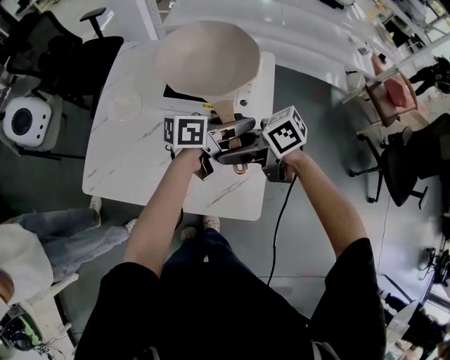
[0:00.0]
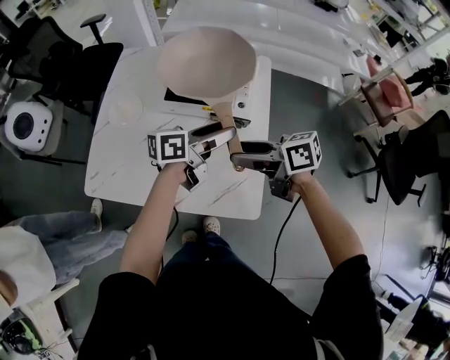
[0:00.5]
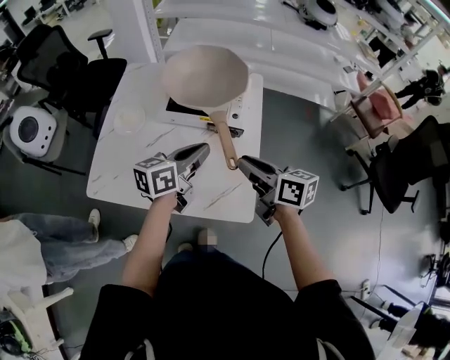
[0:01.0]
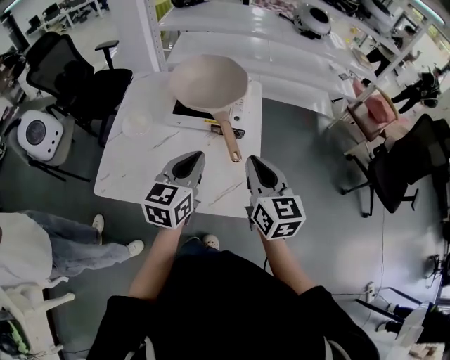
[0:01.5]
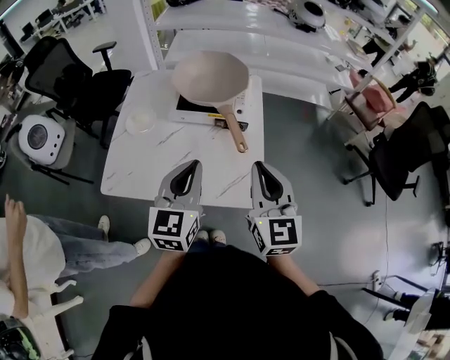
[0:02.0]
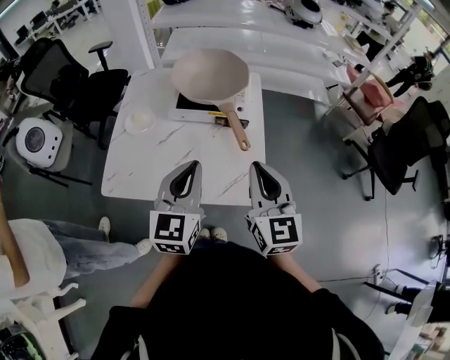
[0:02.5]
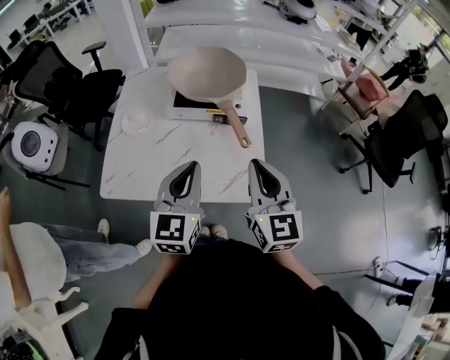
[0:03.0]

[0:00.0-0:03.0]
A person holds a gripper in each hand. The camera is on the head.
0:00.0 to 0:01.5: The right gripper ends up some 15 cm from where it was, changes its angle by approximately 80 degrees, and closes its fingers. Meanwhile the left gripper shifts by approximately 20 cm, changes its angle by approximately 50 degrees, and closes up.
0:01.5 to 0:03.0: The two grippers go some 5 cm backward.

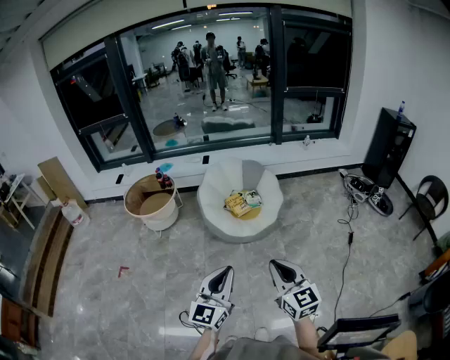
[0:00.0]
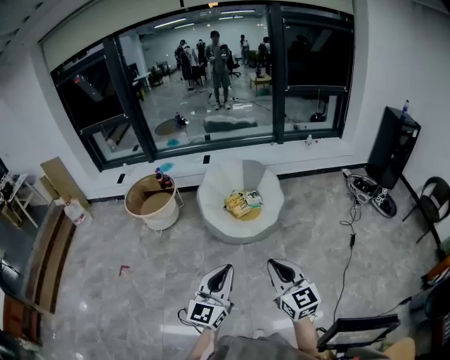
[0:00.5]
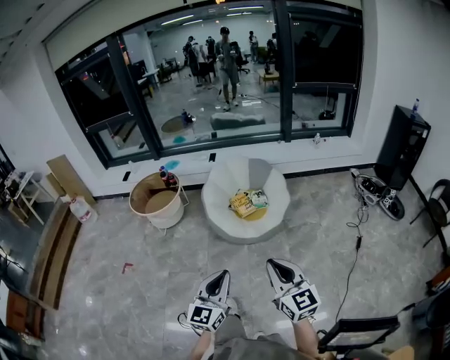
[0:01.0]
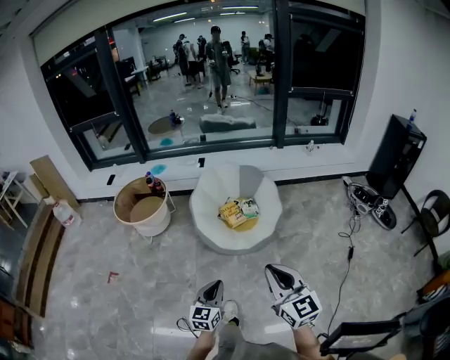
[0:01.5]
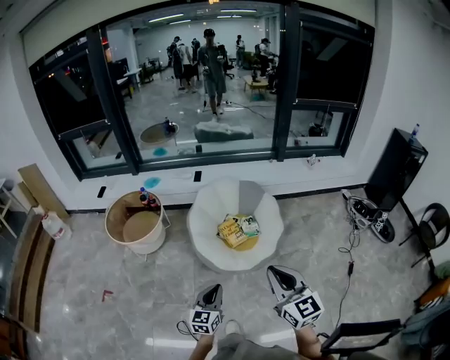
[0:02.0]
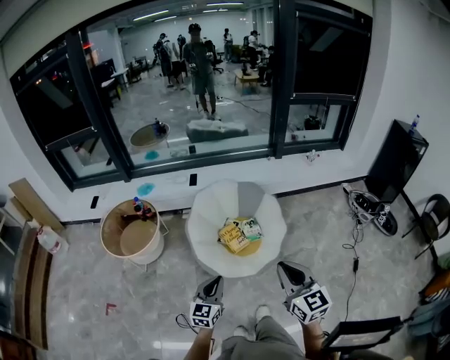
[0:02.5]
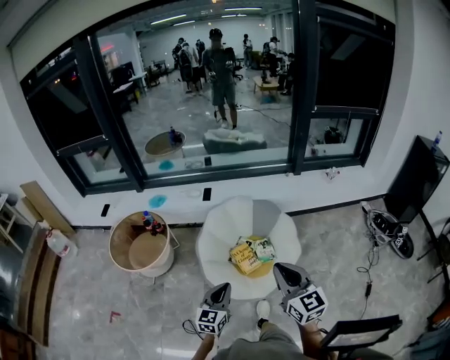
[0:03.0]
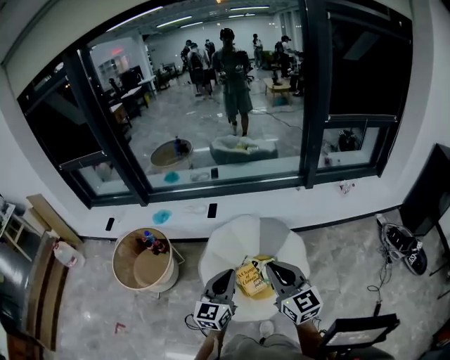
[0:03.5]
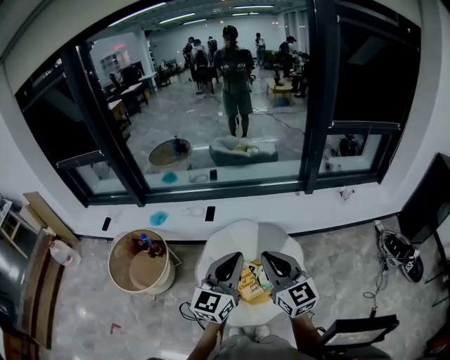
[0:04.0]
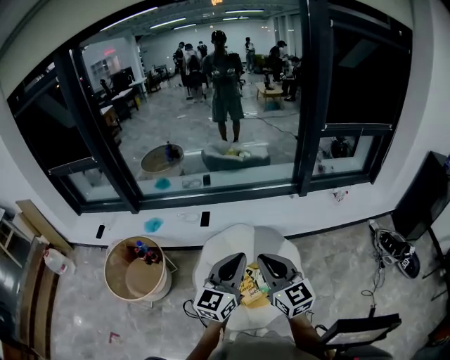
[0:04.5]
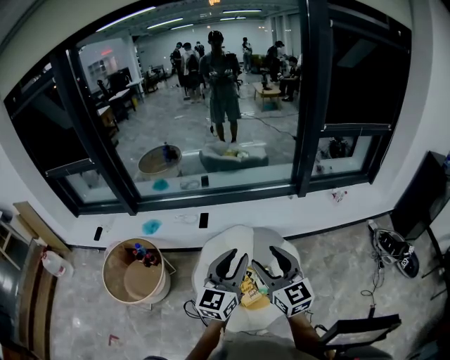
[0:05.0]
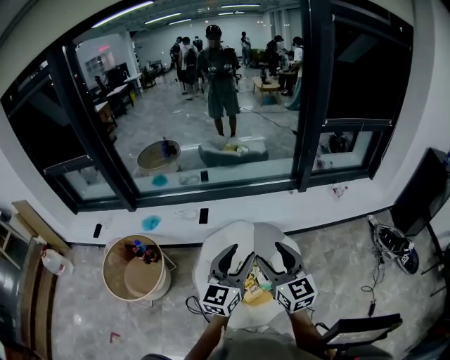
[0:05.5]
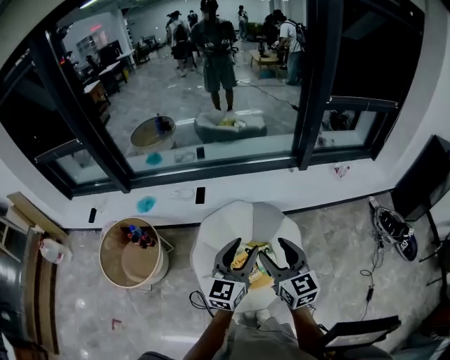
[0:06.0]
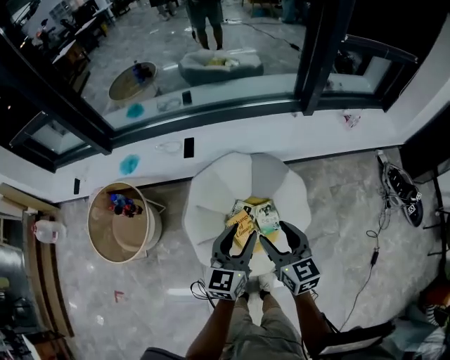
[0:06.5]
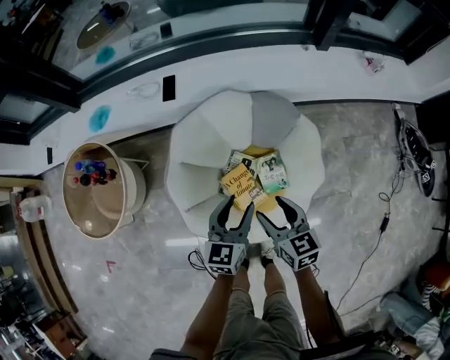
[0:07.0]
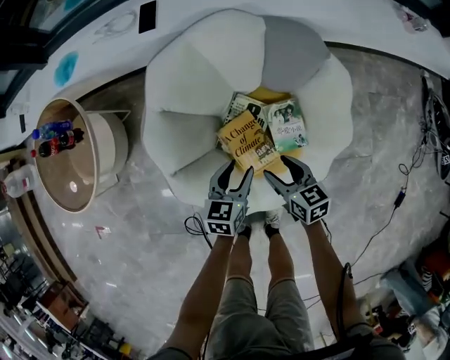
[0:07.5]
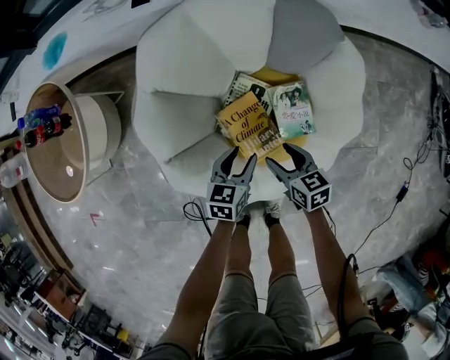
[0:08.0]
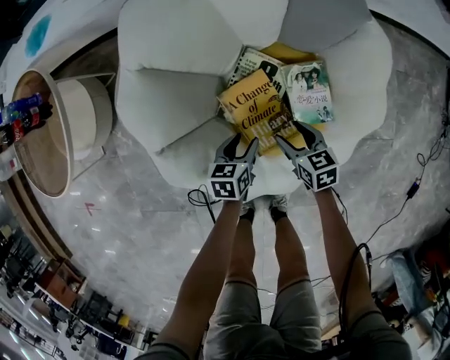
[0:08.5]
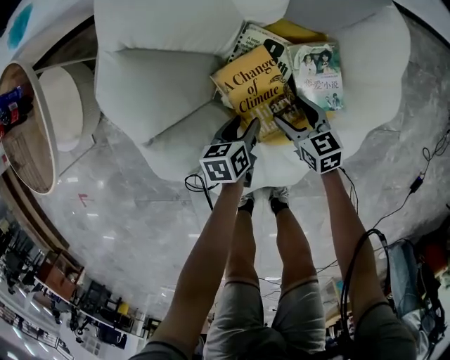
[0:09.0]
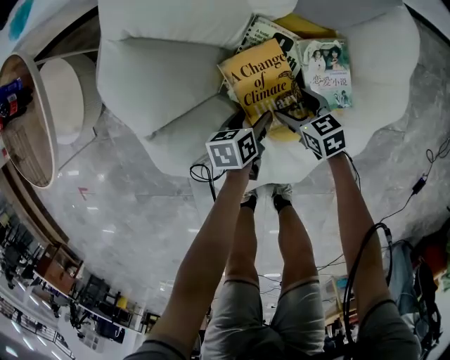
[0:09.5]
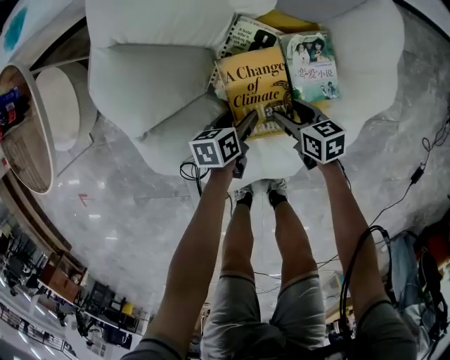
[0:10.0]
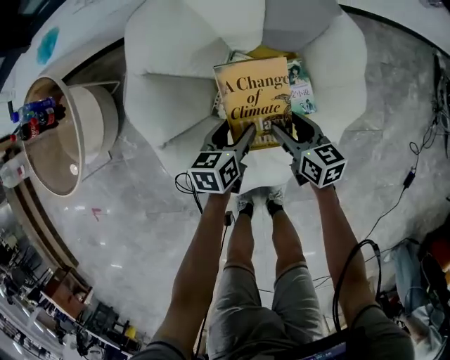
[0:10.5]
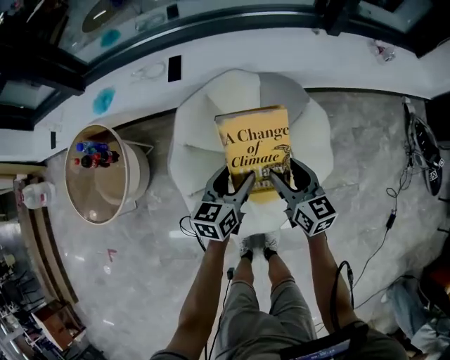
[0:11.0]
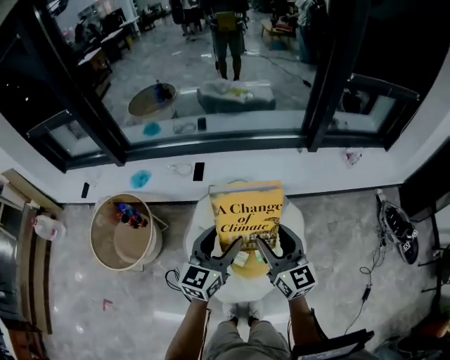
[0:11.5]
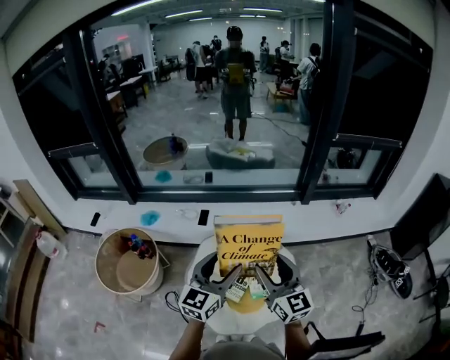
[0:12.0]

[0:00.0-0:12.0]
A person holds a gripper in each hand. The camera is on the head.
0:00.0 to 0:02.0: The right gripper goes approximately 30 cm forward. Meanwhile the left gripper heads forward and downward, covering roughly 35 cm, and changes its angle by approximately 20 degrees.
0:02.0 to 0:04.0: The two grippers travel together, forward, roughly 50 cm. The left gripper shifts roughly 25 cm upward.
0:04.0 to 0:06.0: The right gripper moves downward, some 10 cm, and opens its fingers. The left gripper shifts some 10 cm downward and forward, and opens.
0:06.0 to 0:08.0: Both grippers move downward, roughly 70 cm. The right gripper angles its fingers downward, by about 30 degrees; the left gripper tilts its fingers about 40 degrees downward.
0:08.0 to 0:10.0: Both grippers travel together downward, some 15 cm. The left gripper turns by approximately 30 degrees.
0:10.0 to 0:12.0: The two grippers go roughly 90 cm upward. The left gripper tilts its fingers some 50 degrees upward. Meanwhile the right gripper points its fingers approximately 50 degrees further upward.

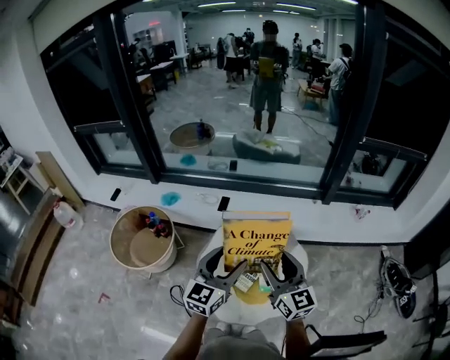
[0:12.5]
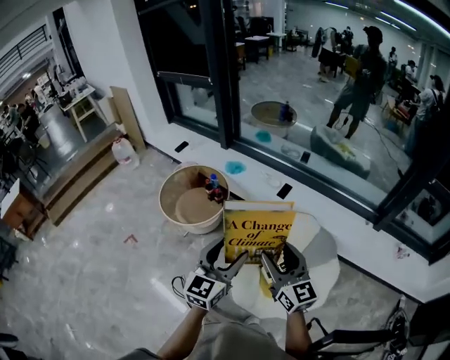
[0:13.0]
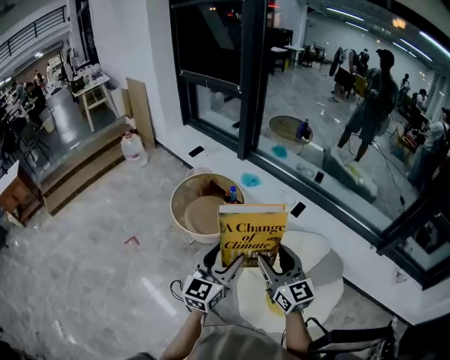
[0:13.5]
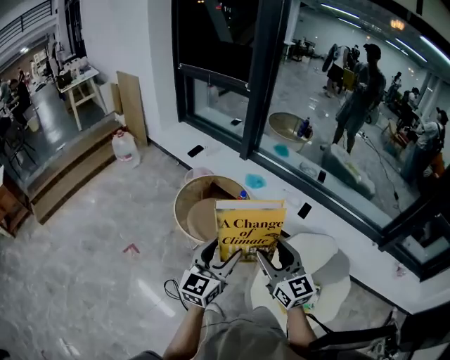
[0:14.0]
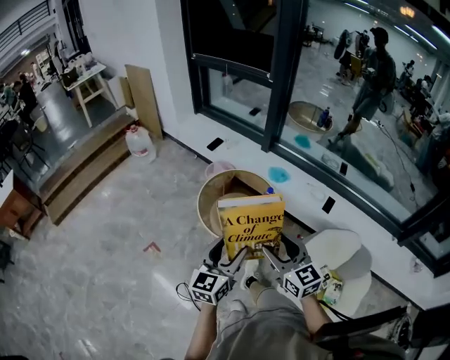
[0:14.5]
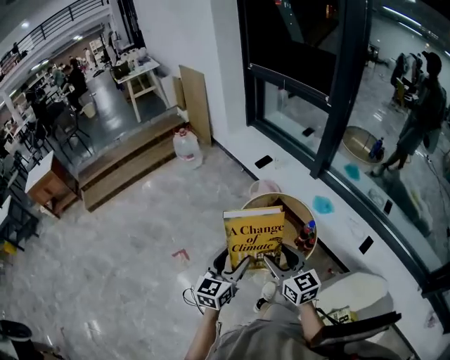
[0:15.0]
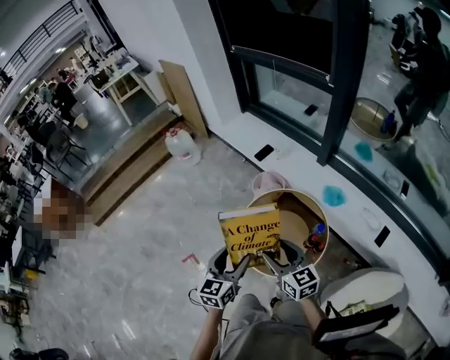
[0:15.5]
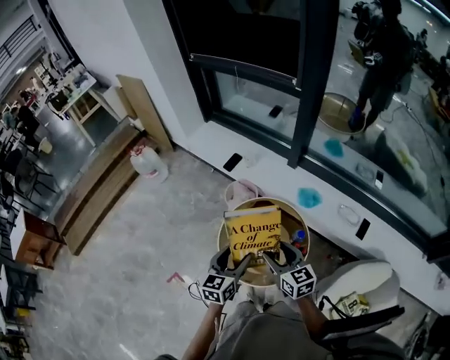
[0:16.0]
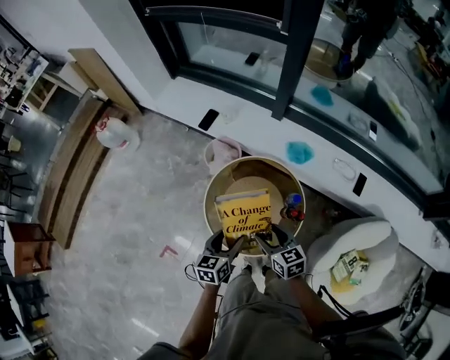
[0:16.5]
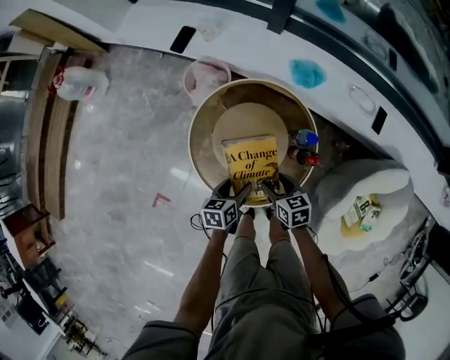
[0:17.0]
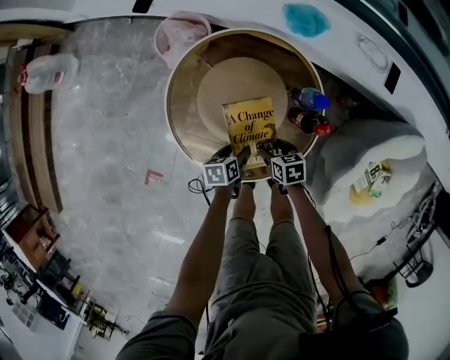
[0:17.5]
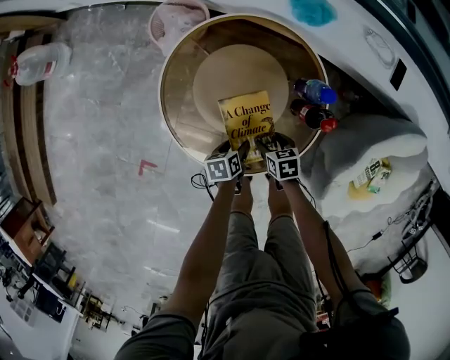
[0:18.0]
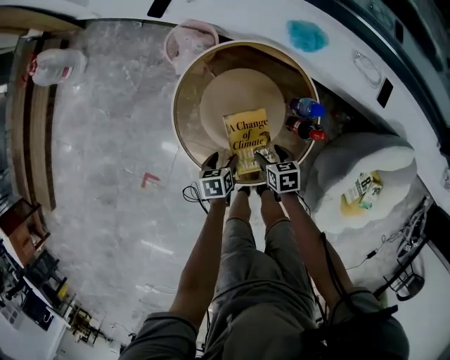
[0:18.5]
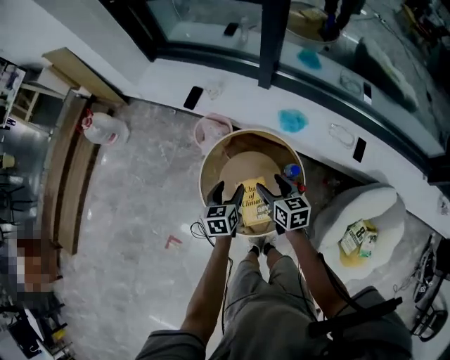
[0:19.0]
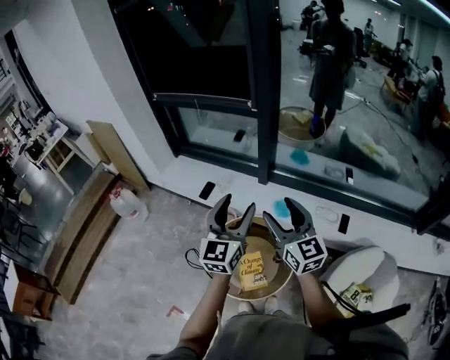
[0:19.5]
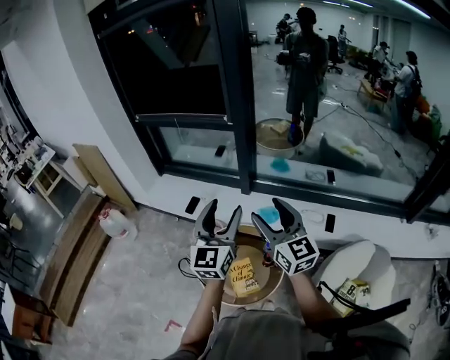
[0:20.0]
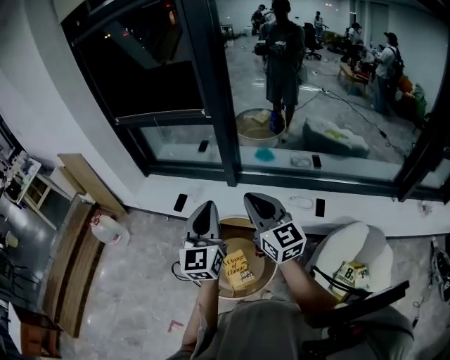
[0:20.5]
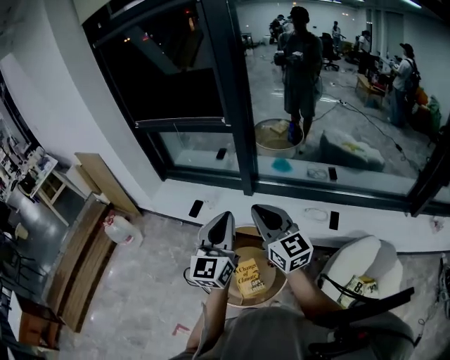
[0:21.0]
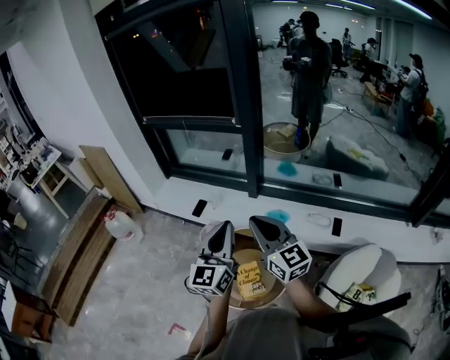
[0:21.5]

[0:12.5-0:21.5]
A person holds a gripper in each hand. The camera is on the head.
0:12.5 to 0:14.5: Both grippers are carried approximately 60 cm. The left gripper swivels roughly 40 degrees. The right gripper turns by some 40 degrees.
0:14.5 to 0:17.0: Both grippers travel together downward, roughly 50 cm. The right gripper angles its fingers downward, by roughly 40 degrees, while the left gripper tilts its fingers roughly 40 degrees downward.
0:17.0 to 0:19.5: The grippers both shift upward by some 60 cm. The left gripper tips its fingers upward by approximately 50 degrees, while the right gripper tips its fingers upward by some 50 degrees.
0:19.5 to 0:21.5: Both grippers move backward, some 5 cm. The right gripper closes its fingers. The left gripper closes up.

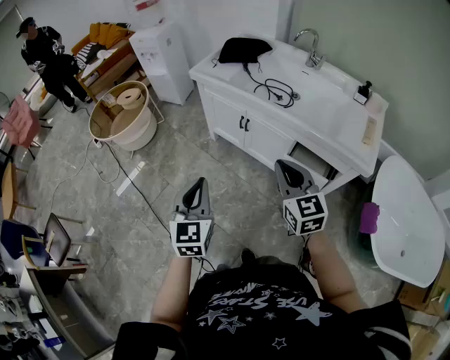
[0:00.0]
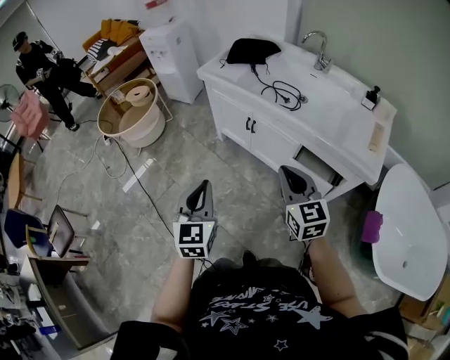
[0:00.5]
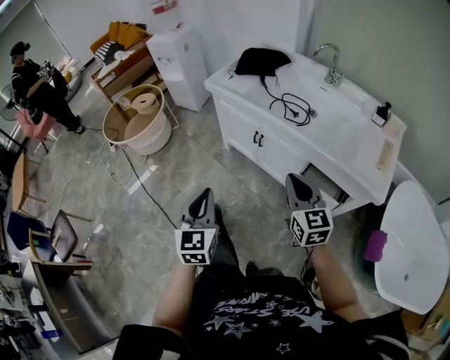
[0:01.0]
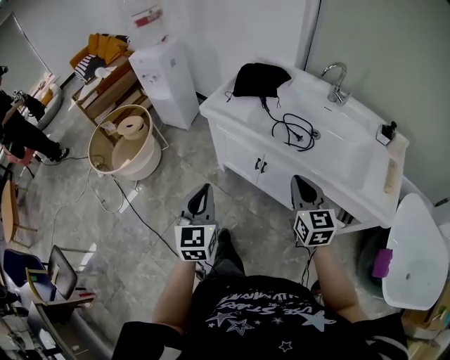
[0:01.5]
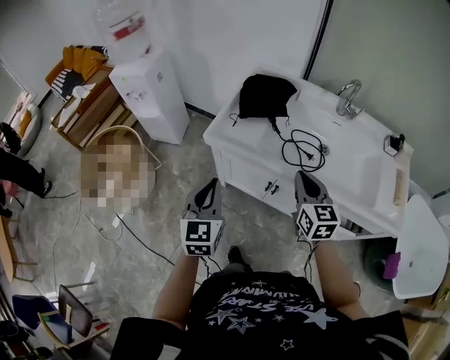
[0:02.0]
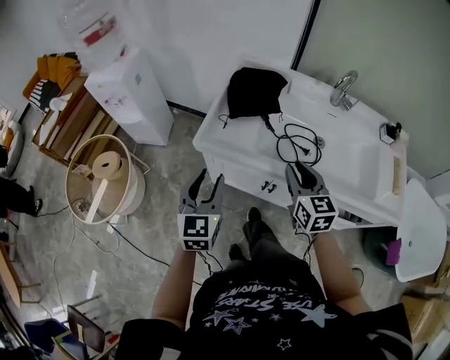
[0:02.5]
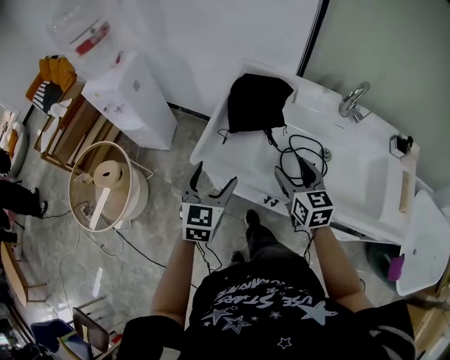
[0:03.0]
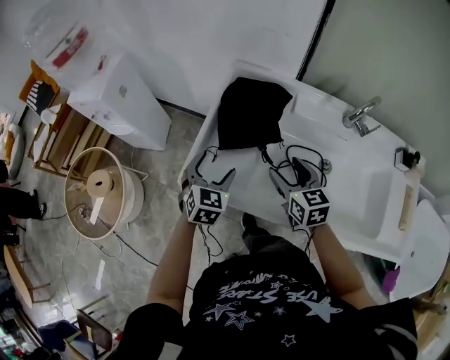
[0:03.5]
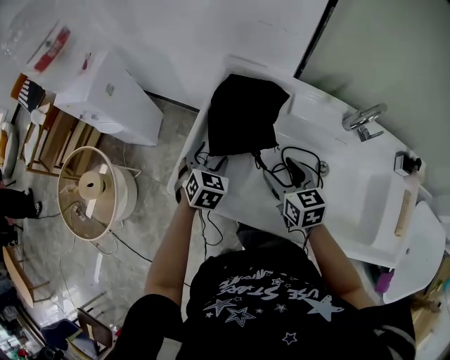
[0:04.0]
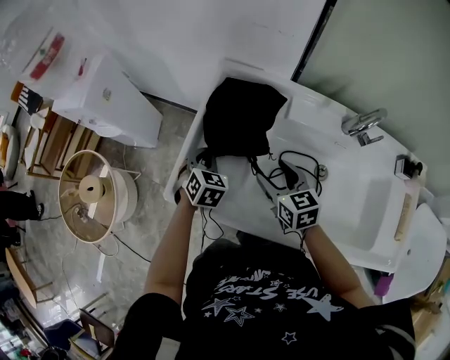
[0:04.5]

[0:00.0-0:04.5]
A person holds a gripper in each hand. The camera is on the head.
0:00.0 to 0:02.0: Both grippers move forward, some 40 cm. The right gripper changes its angle by some 20 degrees.
0:02.0 to 0:04.5: Both grippers travel together forward and downward, roughly 35 cm. The left gripper angles its fingers downward, by about 30 degrees, and opens, then closes again; the right gripper opens.
